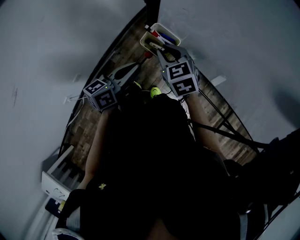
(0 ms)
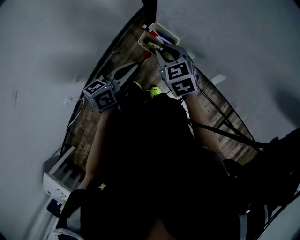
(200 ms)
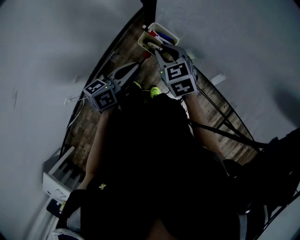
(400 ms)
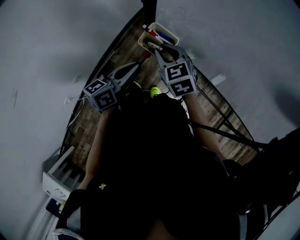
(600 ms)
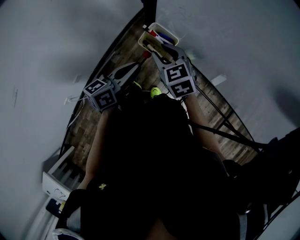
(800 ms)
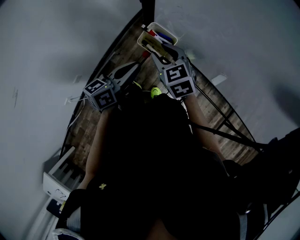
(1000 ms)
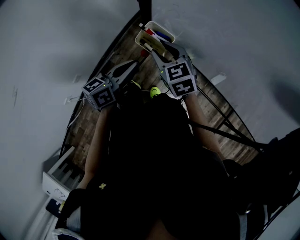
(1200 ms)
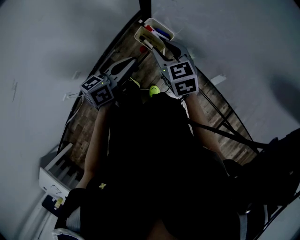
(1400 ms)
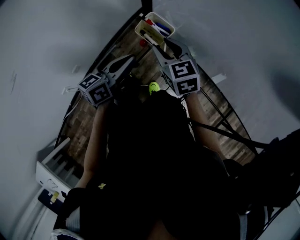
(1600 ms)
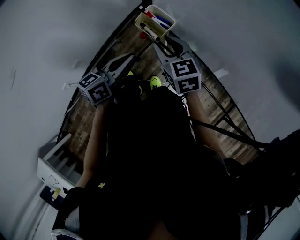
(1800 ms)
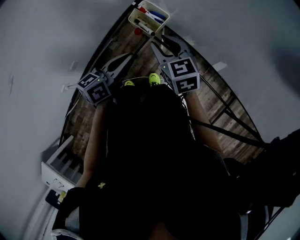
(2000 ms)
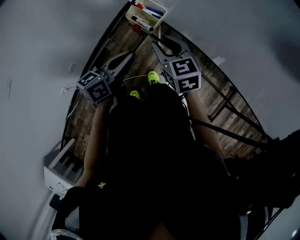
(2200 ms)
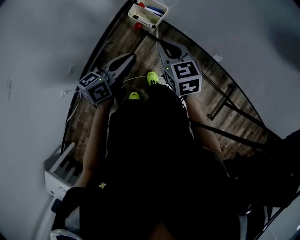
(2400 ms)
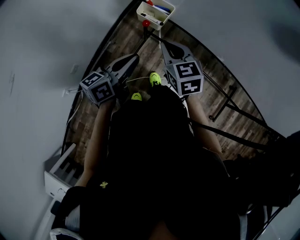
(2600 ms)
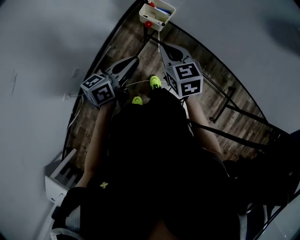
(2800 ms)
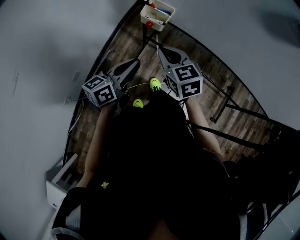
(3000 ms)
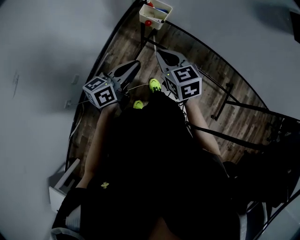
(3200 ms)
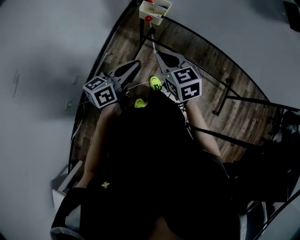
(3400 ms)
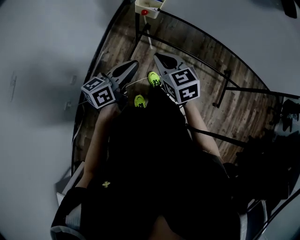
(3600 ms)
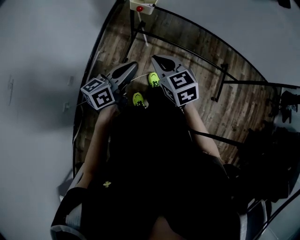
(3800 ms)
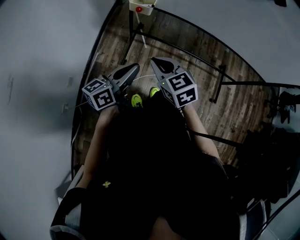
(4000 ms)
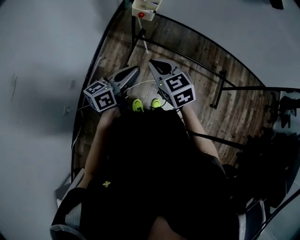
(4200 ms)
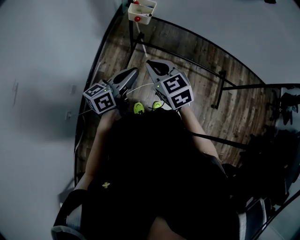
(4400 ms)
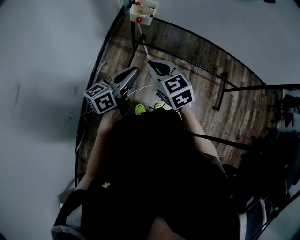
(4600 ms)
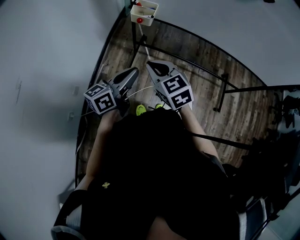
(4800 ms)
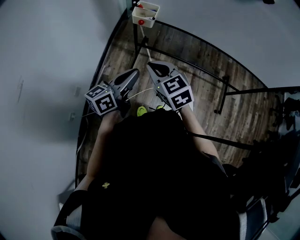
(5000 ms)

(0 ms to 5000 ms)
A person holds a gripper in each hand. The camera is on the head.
0 ms - 1600 ms: The grippers stay close to where they were, moving slightly.
1600 ms - 3400 ms: Both grippers travel together backward, some 20 cm. The right gripper closes its fingers.
3400 ms - 5000 ms: Both grippers travel together backward, roughly 5 cm.

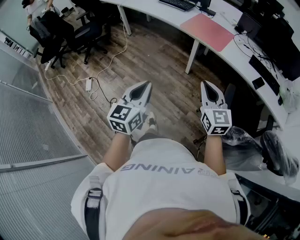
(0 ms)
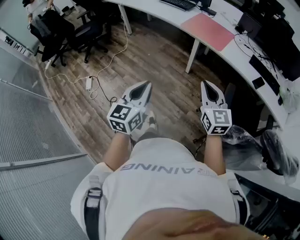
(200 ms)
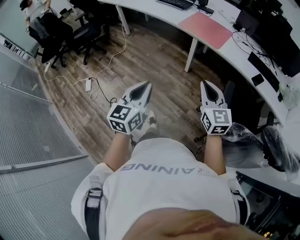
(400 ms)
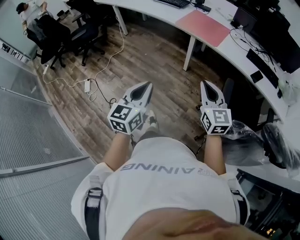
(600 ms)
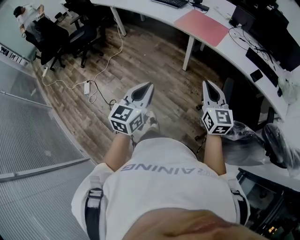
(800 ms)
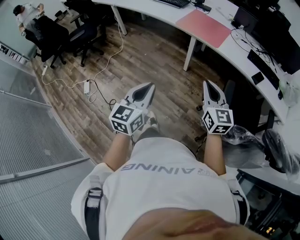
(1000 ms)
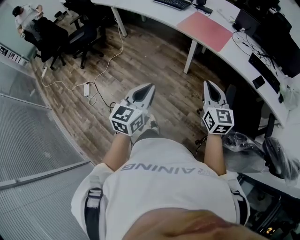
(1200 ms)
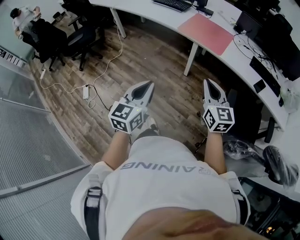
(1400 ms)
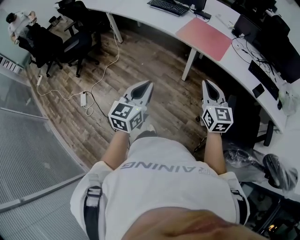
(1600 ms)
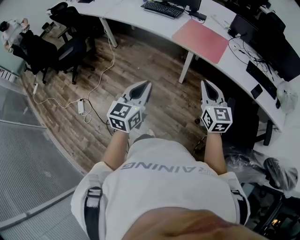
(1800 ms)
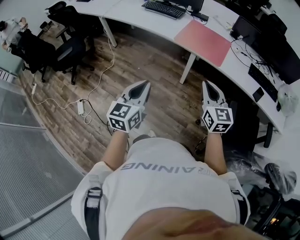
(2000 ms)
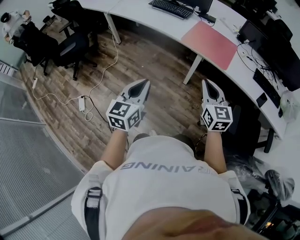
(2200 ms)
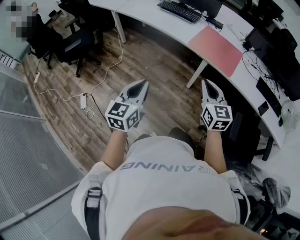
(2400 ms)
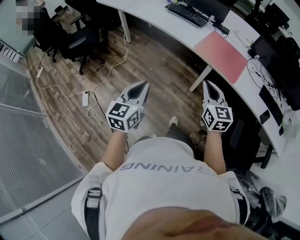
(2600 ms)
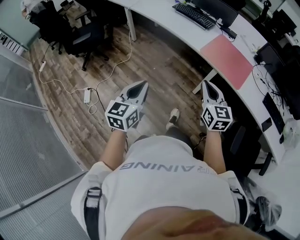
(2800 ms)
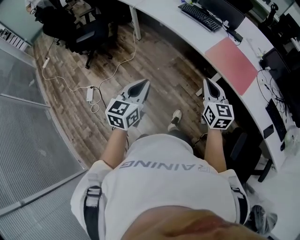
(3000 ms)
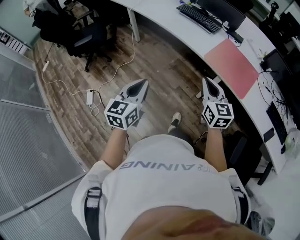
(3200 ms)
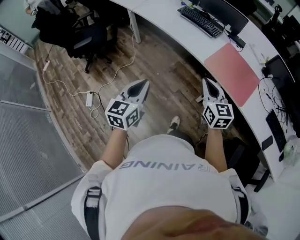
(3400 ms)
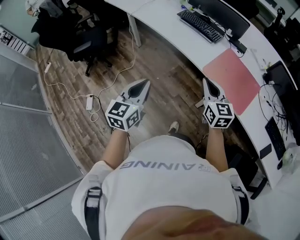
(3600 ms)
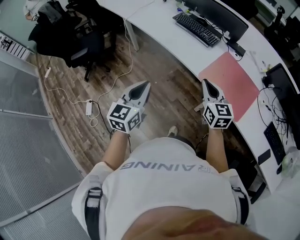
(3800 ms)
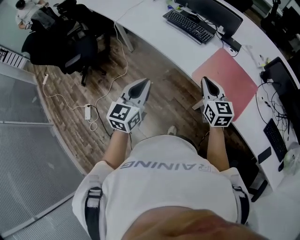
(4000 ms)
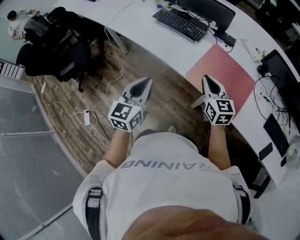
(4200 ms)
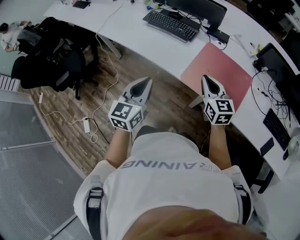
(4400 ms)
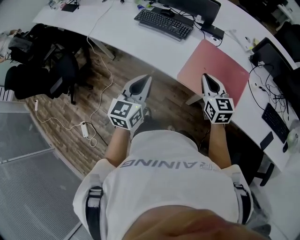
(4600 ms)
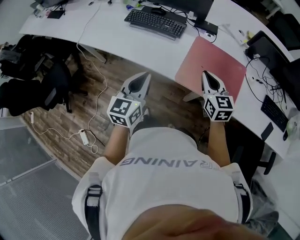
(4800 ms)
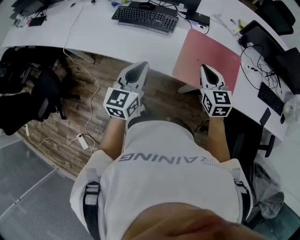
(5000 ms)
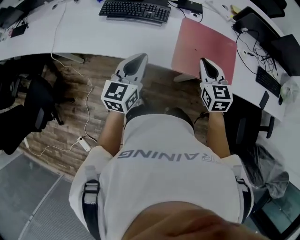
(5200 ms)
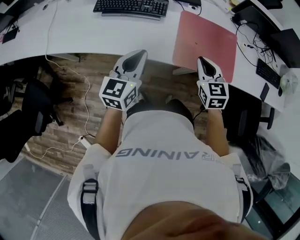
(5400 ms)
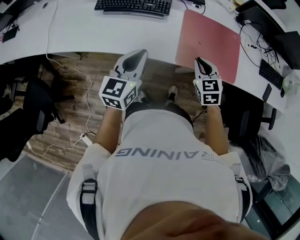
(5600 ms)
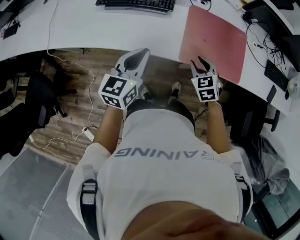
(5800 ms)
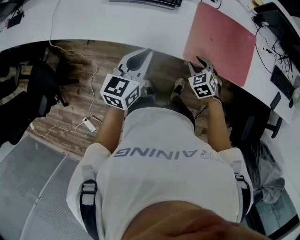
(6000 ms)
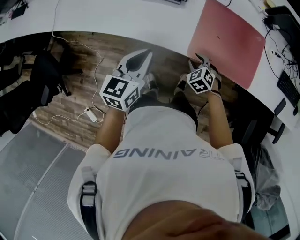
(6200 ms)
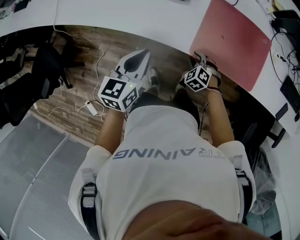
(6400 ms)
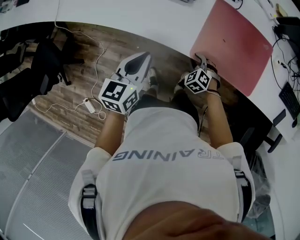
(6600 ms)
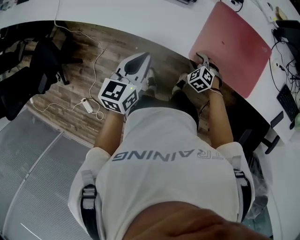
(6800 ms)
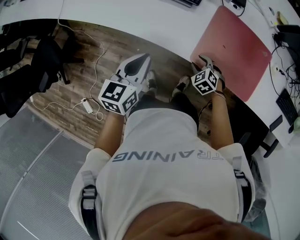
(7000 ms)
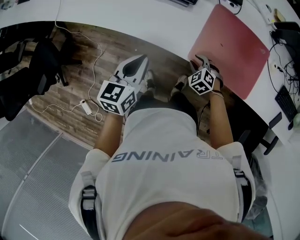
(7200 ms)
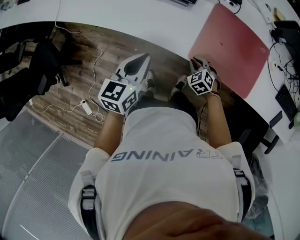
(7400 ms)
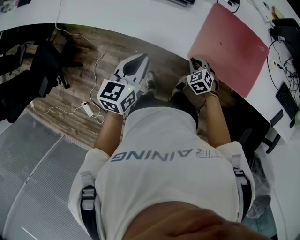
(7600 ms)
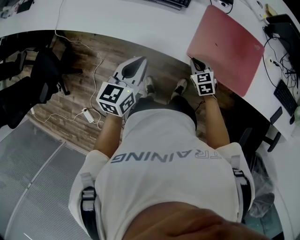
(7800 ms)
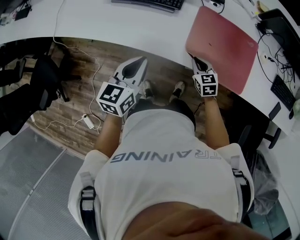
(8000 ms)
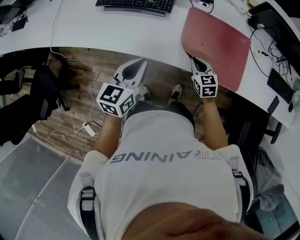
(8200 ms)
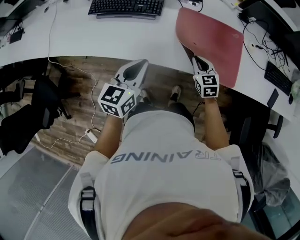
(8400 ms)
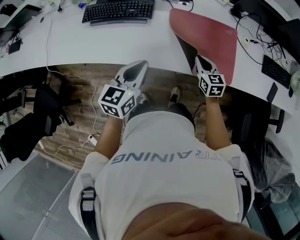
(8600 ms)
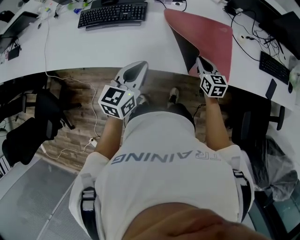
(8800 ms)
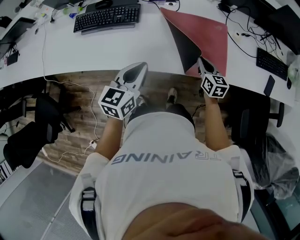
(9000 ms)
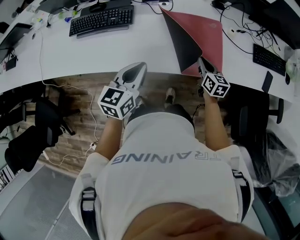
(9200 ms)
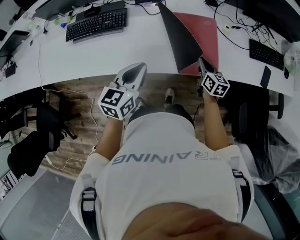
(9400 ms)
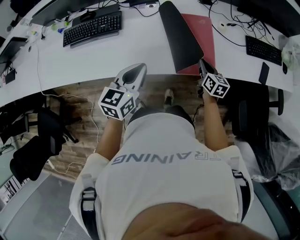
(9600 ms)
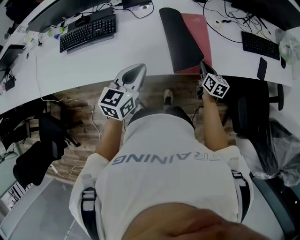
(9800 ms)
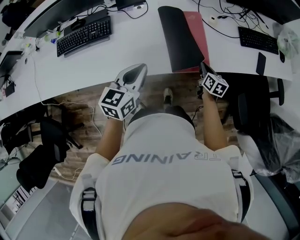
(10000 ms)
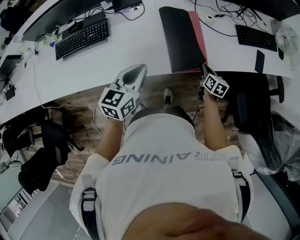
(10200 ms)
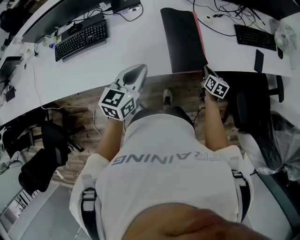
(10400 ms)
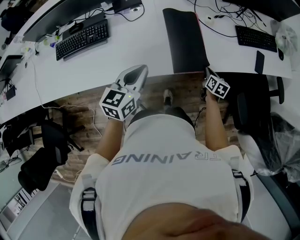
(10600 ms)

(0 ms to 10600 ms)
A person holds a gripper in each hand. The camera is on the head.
0 ms - 1600 ms: Both grippers move forward, about 15 cm.
1600 ms - 3000 ms: The left gripper goes about 25 cm to the left and forward. The right gripper moves forward and to the left, approximately 25 cm.
3000 ms - 4600 ms: The two grippers go roughly 40 cm forward and to the right.
4600 ms - 6000 ms: The right gripper shifts approximately 20 cm downward, tilts its fingers some 40 degrees downward, and opens up, while the left gripper moves some 20 cm, and swivels about 20 degrees.
6000 ms - 7600 ms: The right gripper travels downward by about 10 cm, and closes.
7600 ms - 9000 ms: The left gripper goes some 15 cm to the right, and rotates approximately 20 degrees; the right gripper goes some 25 cm to the right and upward, and rolls clockwise, seen from behind, by approximately 50 degrees.
9000 ms - 10600 ms: The right gripper shifts some 25 cm to the right and downward, and turns by roughly 30 degrees; the left gripper goes roughly 10 cm to the right.

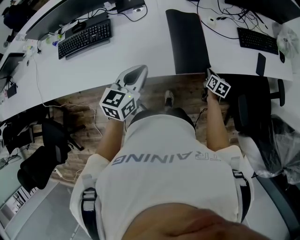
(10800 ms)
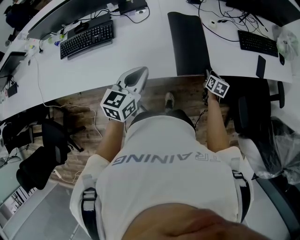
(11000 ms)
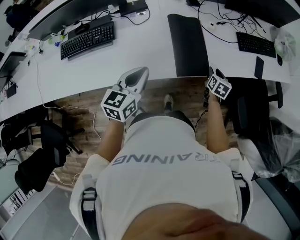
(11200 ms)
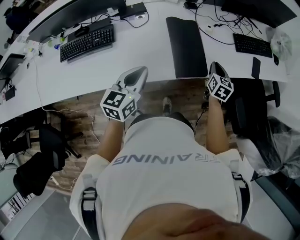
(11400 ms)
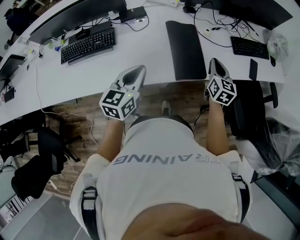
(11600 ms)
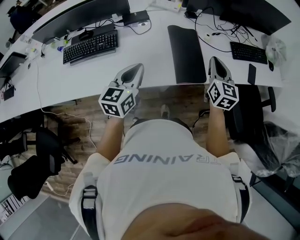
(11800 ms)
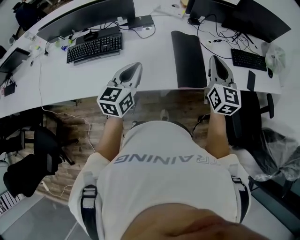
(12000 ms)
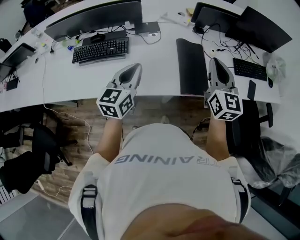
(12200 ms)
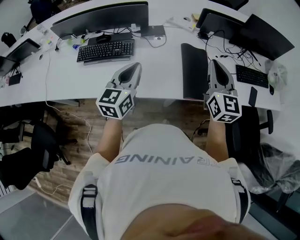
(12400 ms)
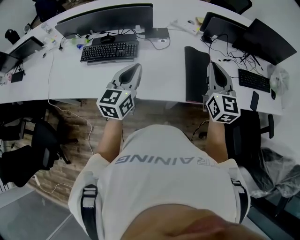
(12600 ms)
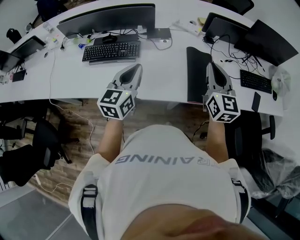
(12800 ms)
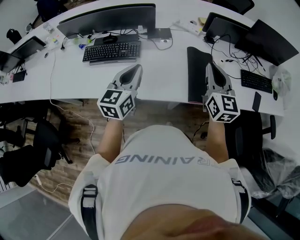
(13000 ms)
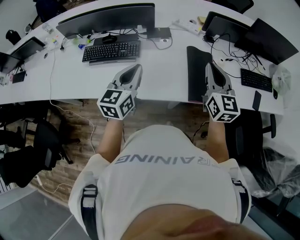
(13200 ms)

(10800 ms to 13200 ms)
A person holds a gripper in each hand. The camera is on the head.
10800 ms - 12000 ms: The right gripper moves upward, about 35 cm, tilts its fingers about 40 degrees upward, and opens, then closes again; the left gripper shifts some 10 cm to the left and upward.
12000 ms - 13200 ms: The grippers both shift to the left by some 10 cm.

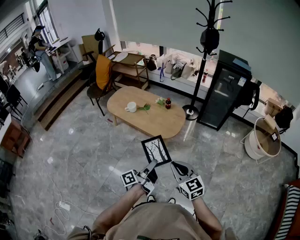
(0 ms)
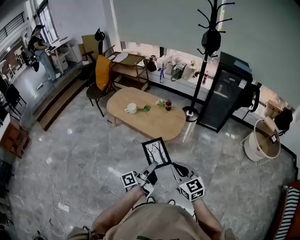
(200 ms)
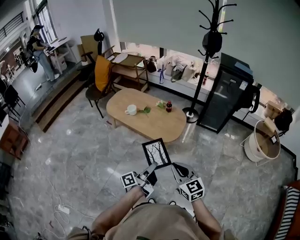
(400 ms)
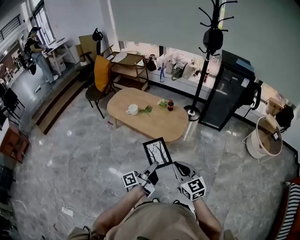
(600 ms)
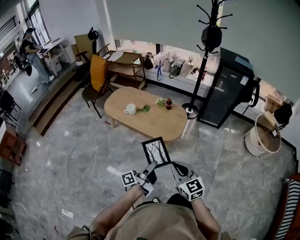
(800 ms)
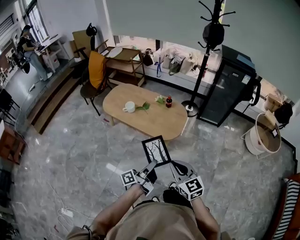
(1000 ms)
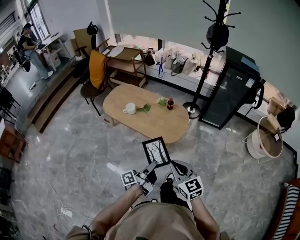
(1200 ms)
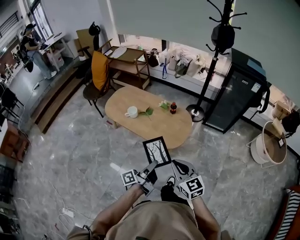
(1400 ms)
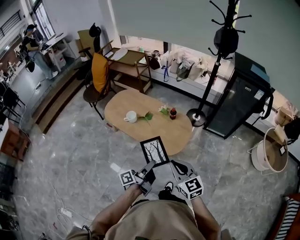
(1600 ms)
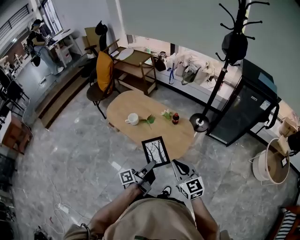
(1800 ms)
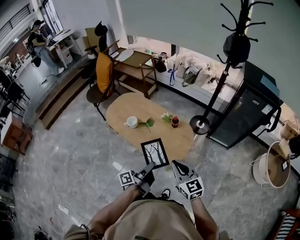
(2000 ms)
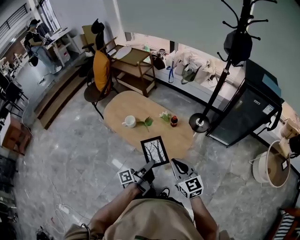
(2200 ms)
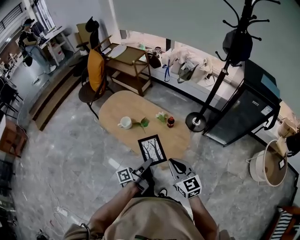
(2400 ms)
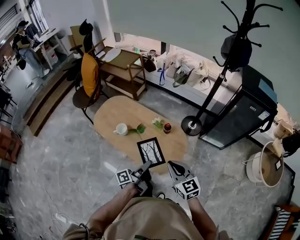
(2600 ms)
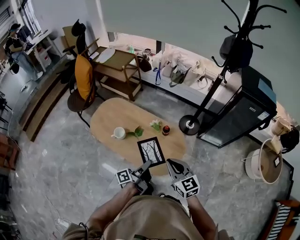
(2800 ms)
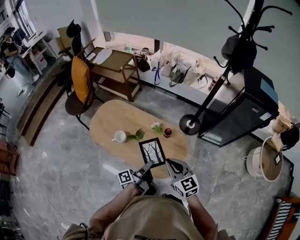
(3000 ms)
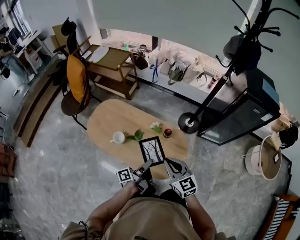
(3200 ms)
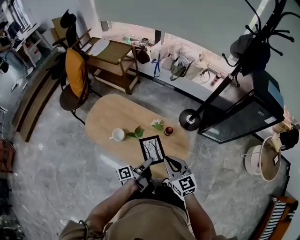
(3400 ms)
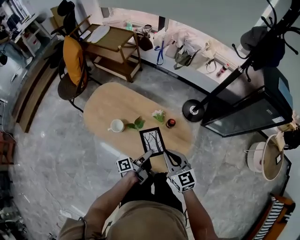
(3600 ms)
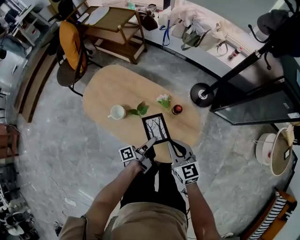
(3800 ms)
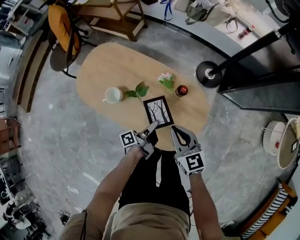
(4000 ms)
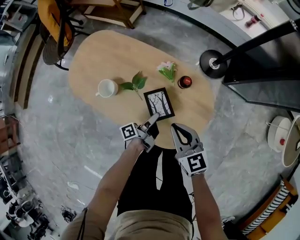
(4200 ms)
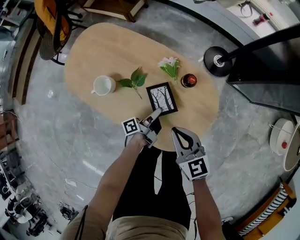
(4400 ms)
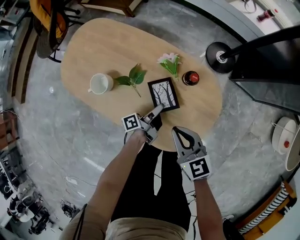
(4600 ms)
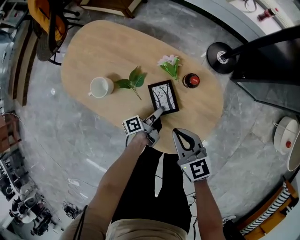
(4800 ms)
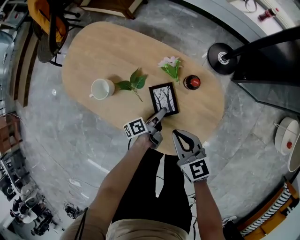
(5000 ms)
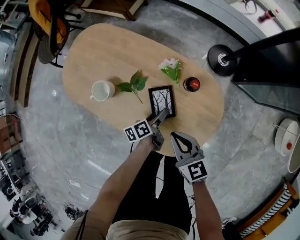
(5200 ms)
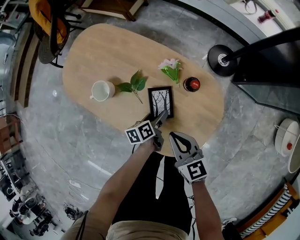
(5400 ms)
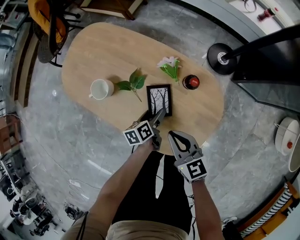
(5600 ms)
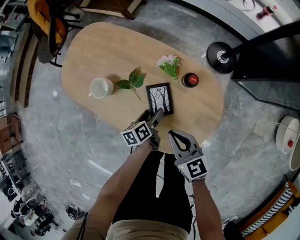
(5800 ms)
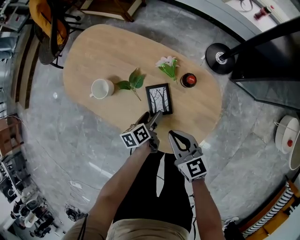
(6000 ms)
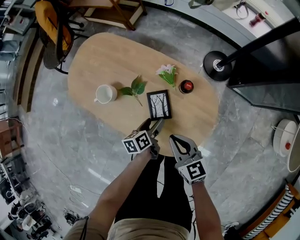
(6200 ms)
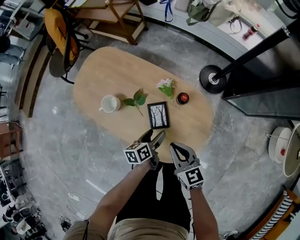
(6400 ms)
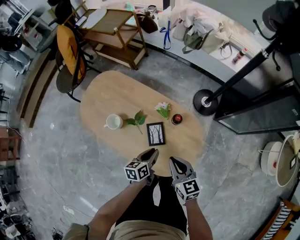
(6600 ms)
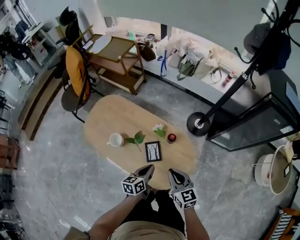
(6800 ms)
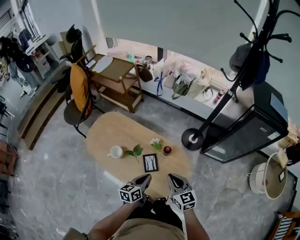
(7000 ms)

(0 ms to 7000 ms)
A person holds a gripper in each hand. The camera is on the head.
0 ms - 1400 ms: The grippers both shift forward by roughly 15 cm.
1400 ms - 2800 ms: Both grippers move forward, approximately 30 cm.
2800 ms - 4200 ms: The two grippers go some 30 cm downward and forward.
4200 ms - 5600 ms: Both grippers move downward, approximately 10 cm. The left gripper tilts its fingers roughly 40 degrees downward, and opens up.
5600 ms - 7000 ms: Both grippers move upward, about 25 cm. The left gripper rotates about 30 degrees, and closes.
